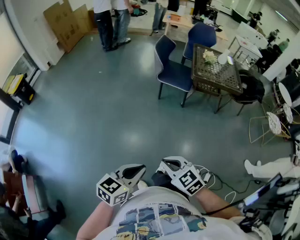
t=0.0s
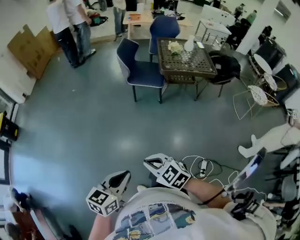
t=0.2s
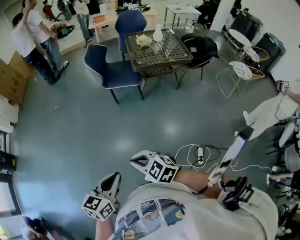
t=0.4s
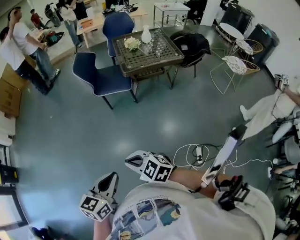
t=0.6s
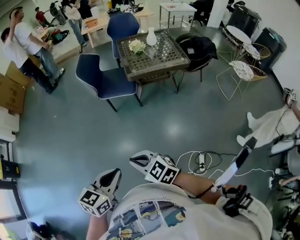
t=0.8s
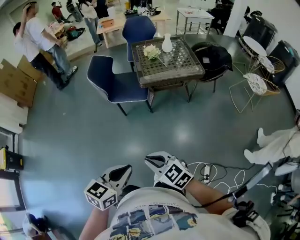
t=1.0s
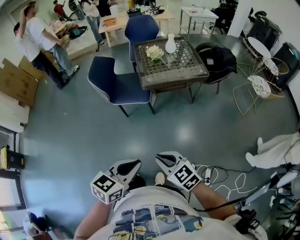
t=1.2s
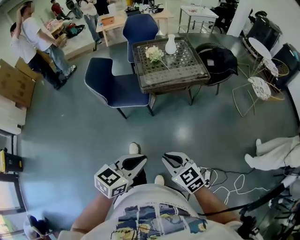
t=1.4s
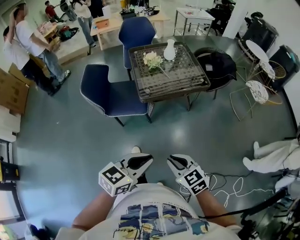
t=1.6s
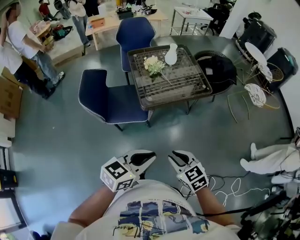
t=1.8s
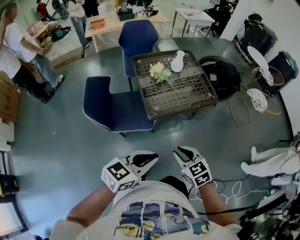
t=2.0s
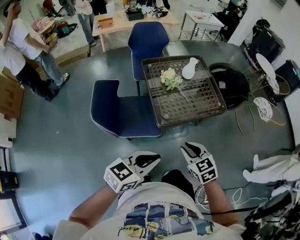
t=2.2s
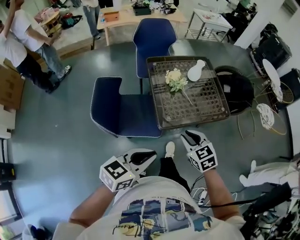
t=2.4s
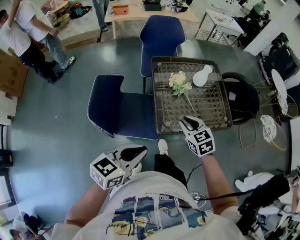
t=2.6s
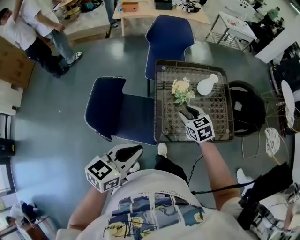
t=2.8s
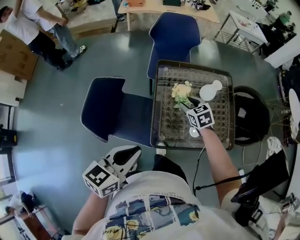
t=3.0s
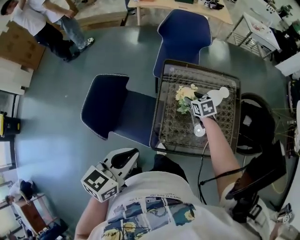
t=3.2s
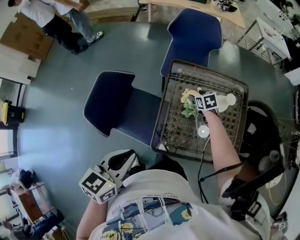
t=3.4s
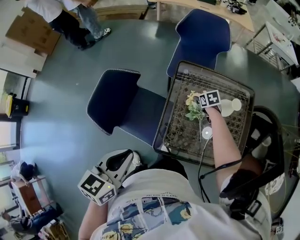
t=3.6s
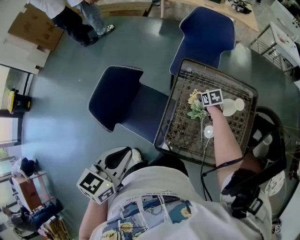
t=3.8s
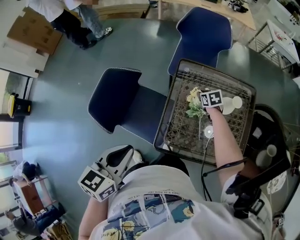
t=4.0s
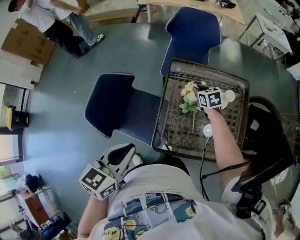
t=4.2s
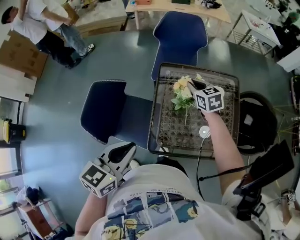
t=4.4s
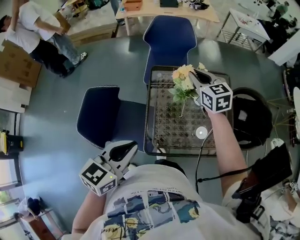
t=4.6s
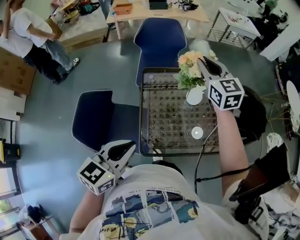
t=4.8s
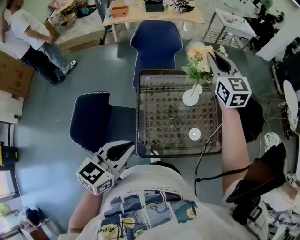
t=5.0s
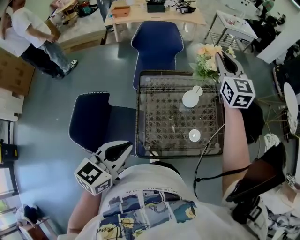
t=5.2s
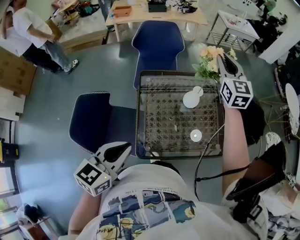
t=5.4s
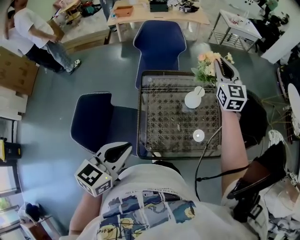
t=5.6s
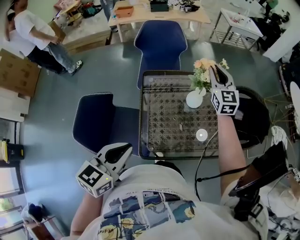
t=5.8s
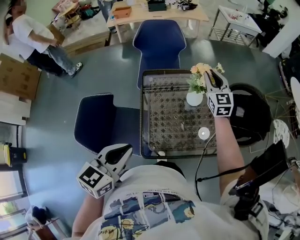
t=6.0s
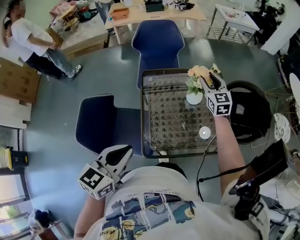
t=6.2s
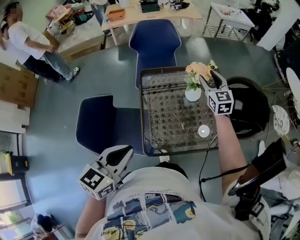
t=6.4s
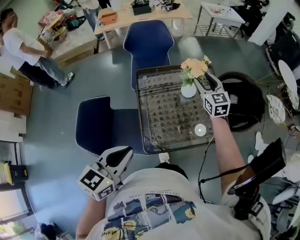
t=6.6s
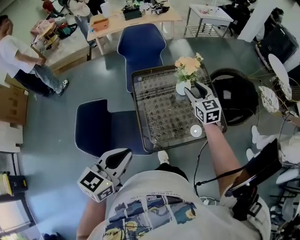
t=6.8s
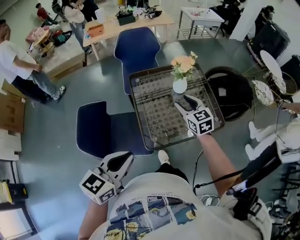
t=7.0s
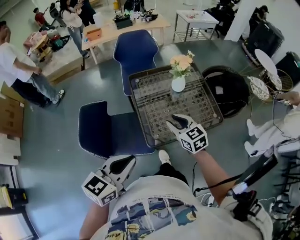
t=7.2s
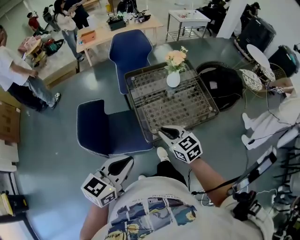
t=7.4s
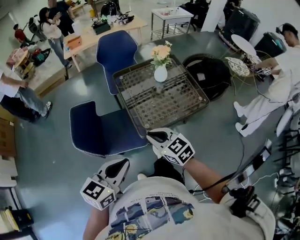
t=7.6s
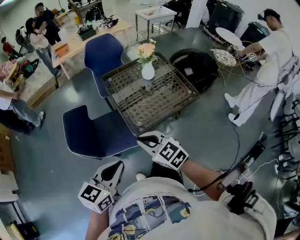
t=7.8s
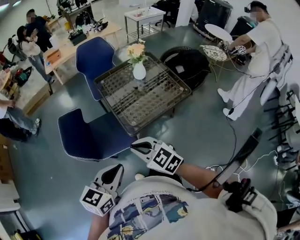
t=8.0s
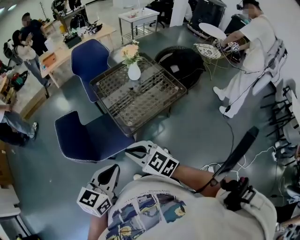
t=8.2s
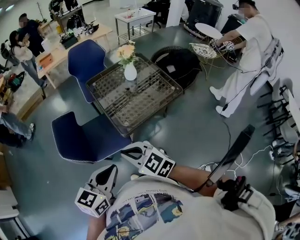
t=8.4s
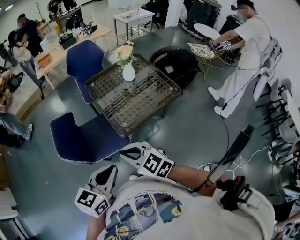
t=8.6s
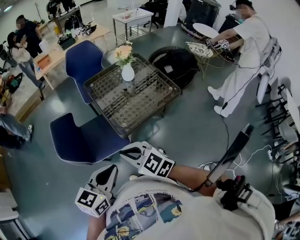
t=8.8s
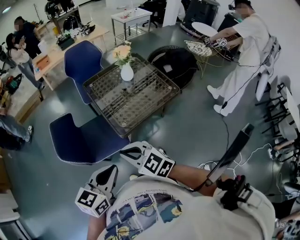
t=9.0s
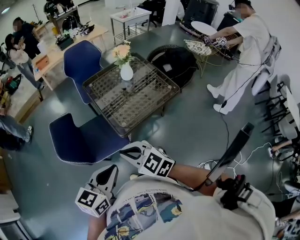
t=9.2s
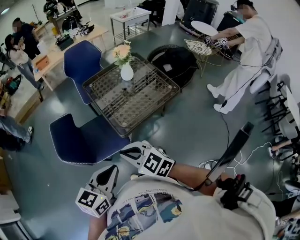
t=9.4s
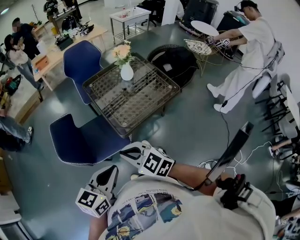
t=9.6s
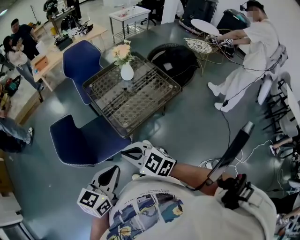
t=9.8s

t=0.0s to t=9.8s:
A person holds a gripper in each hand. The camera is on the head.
t=0.0s to t=1.4s: Both grippers move forward and to the right, approximately 40 cm. The right gripper changes its angle by approximately 20 degrees; the left gripper changes its angle by some 20 degrees.
t=1.4s to t=2.8s: Both grippers are carried forward, approximately 60 cm. The right gripper opens its fingers.
t=2.8s to t=4.2s: The right gripper shifts by some 25 cm, and opens and closes again, while the left gripper ends up roughly 10 cm from where it was, and changes its angle by approximately 20 degrees.
t=4.2s to t=5.6s: The left gripper moves about 10 cm, while the right gripper shifts approximately 30 cm upward, and points its fingers some 40 degrees further upward.
t=5.6s to t=7.0s: The left gripper moves backward, approximately 15 cm. Meanwhile the right gripper goes about 30 cm backward and downward, turns by roughly 20 degrees, and opens its fingers.
t=7.0s to t=8.4s: The left gripper shifts approximately 20 cm backward. The right gripper goes approximately 40 cm backward and to the left, and closes up.
t=8.4s to t=9.8s: The grippers stay close to where they were, moving slightly.

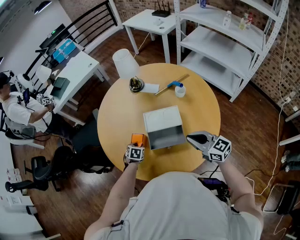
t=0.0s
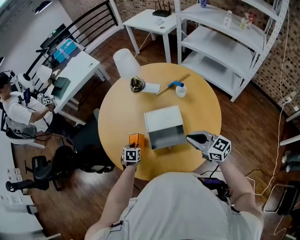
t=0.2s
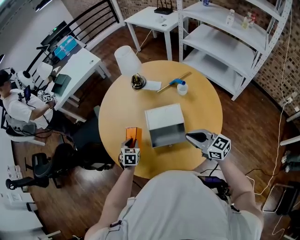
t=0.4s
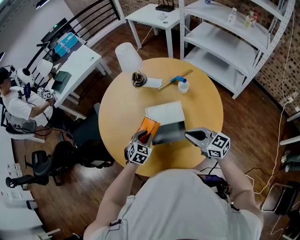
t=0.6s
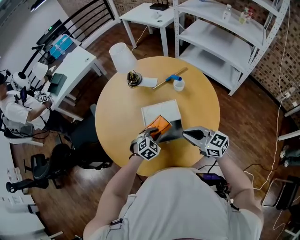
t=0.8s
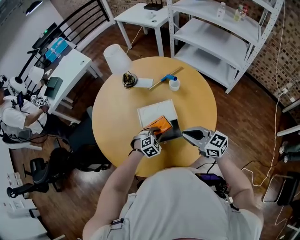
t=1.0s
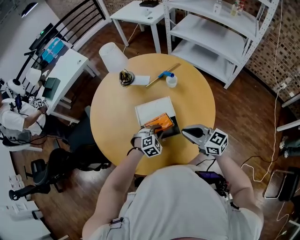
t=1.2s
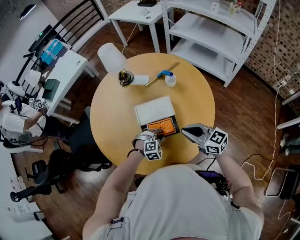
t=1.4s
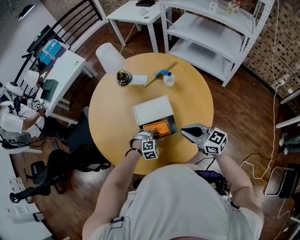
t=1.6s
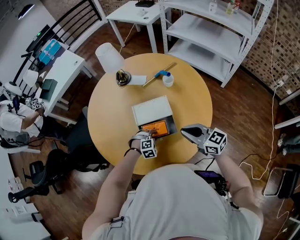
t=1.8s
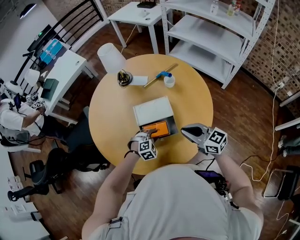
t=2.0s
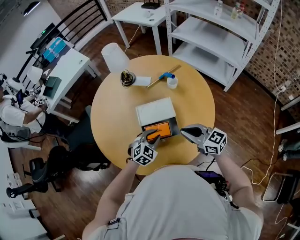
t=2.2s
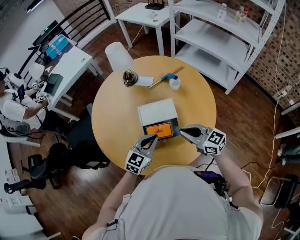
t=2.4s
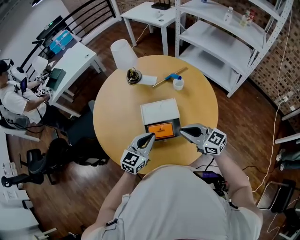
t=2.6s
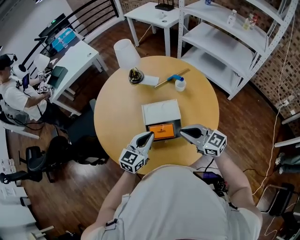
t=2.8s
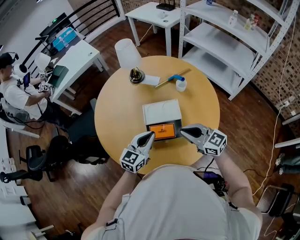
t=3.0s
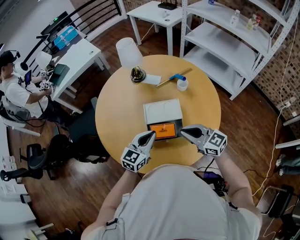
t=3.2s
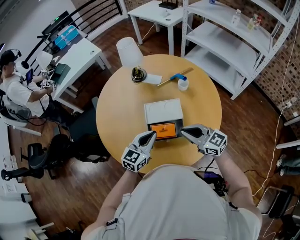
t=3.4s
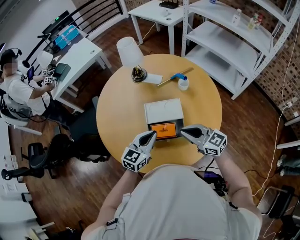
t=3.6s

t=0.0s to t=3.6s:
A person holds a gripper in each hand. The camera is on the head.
t=0.0s to t=1.8s: The left gripper shifts roughly 15 cm to the right, and twists roughly 70 degrees clockwise, seen from behind.
t=1.8s to t=3.6s: The left gripper heads upward, covering about 25 cm, points its fingers roughly 50 degrees further upward, and closes. The right gripper ends up about 5 cm from where it was.

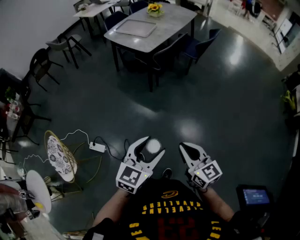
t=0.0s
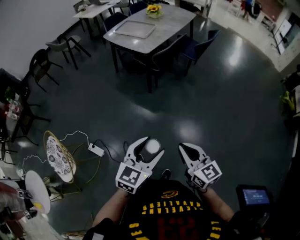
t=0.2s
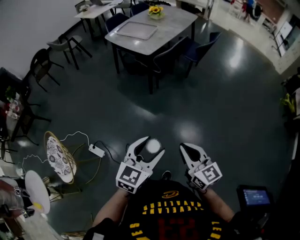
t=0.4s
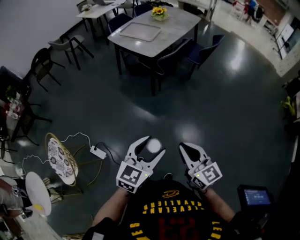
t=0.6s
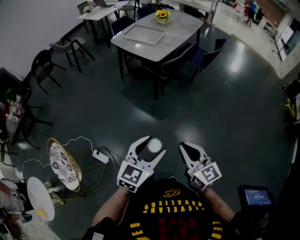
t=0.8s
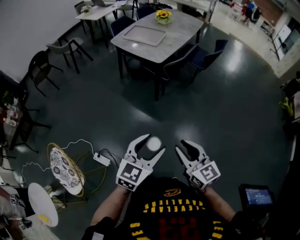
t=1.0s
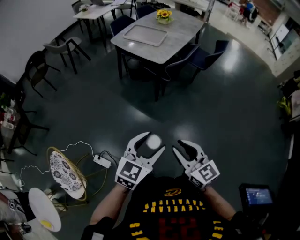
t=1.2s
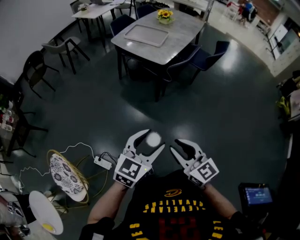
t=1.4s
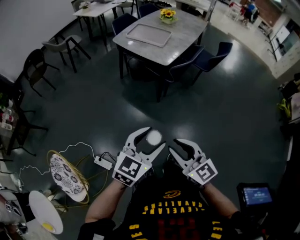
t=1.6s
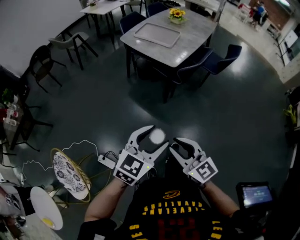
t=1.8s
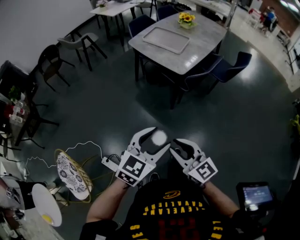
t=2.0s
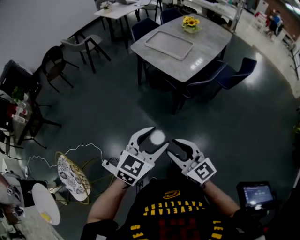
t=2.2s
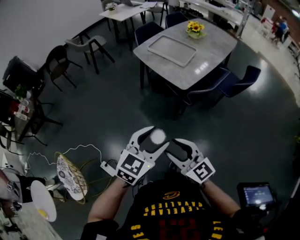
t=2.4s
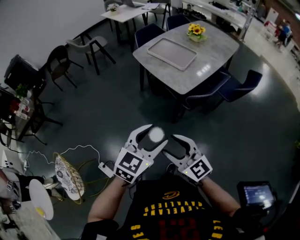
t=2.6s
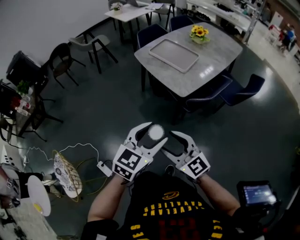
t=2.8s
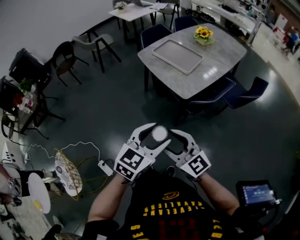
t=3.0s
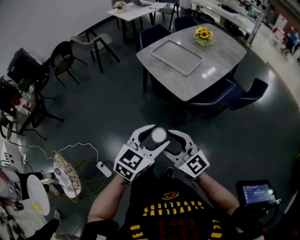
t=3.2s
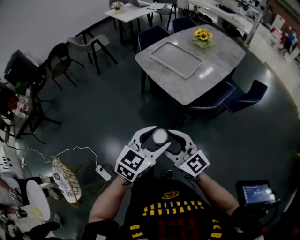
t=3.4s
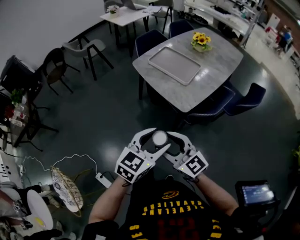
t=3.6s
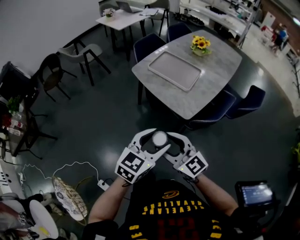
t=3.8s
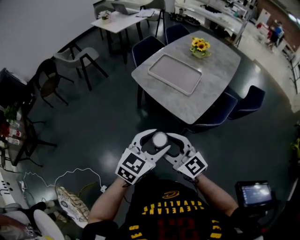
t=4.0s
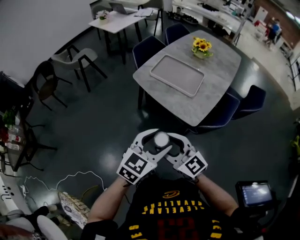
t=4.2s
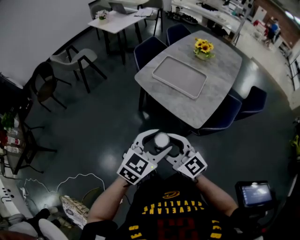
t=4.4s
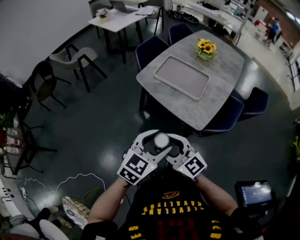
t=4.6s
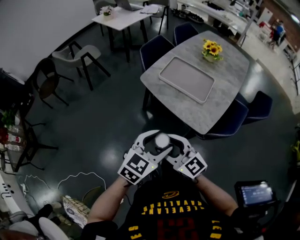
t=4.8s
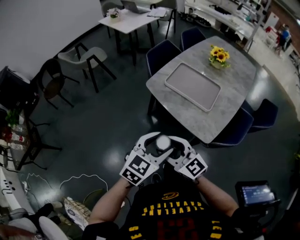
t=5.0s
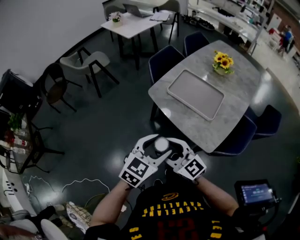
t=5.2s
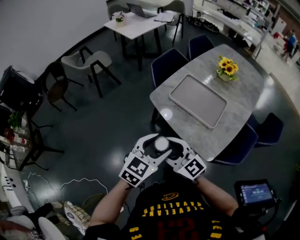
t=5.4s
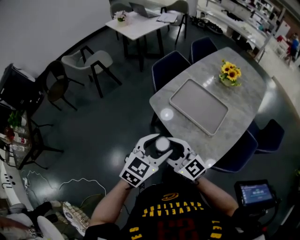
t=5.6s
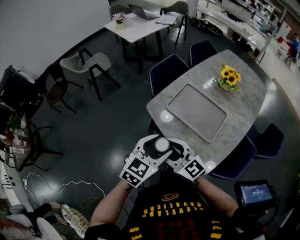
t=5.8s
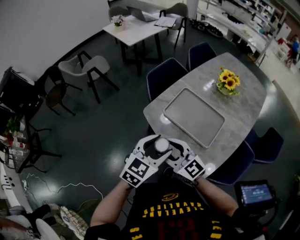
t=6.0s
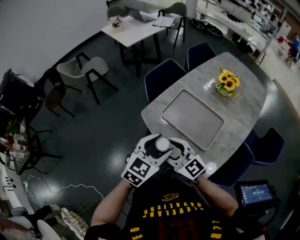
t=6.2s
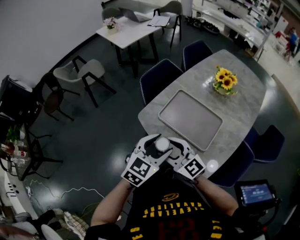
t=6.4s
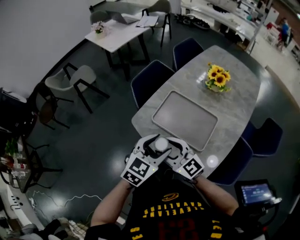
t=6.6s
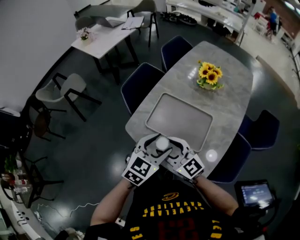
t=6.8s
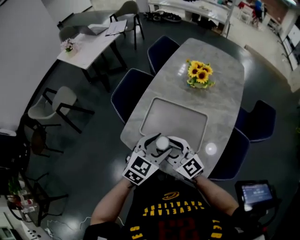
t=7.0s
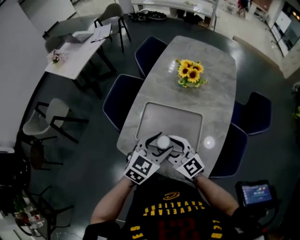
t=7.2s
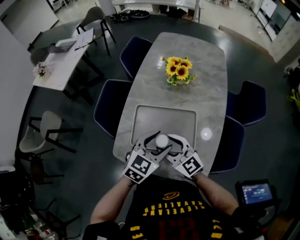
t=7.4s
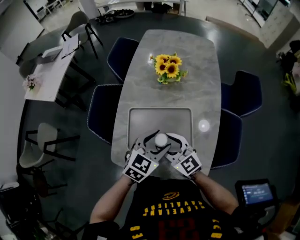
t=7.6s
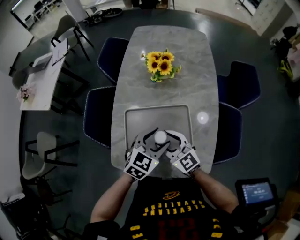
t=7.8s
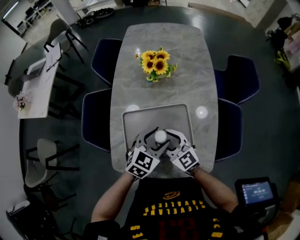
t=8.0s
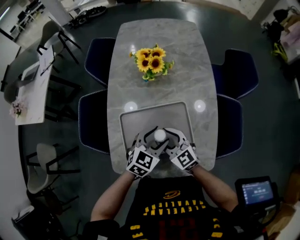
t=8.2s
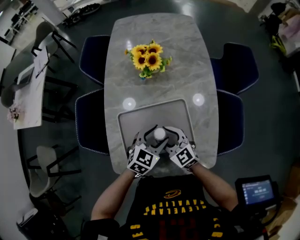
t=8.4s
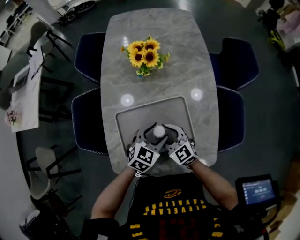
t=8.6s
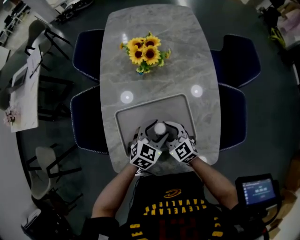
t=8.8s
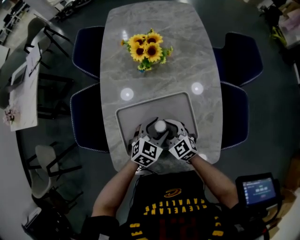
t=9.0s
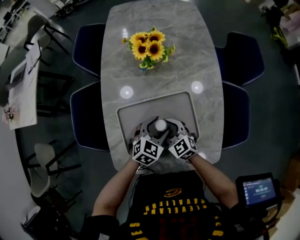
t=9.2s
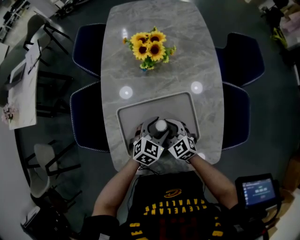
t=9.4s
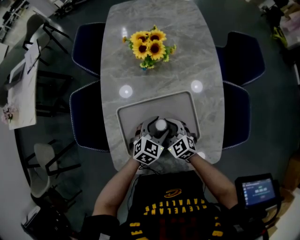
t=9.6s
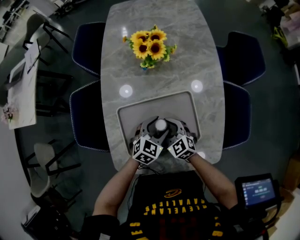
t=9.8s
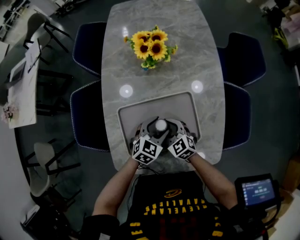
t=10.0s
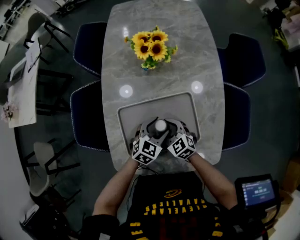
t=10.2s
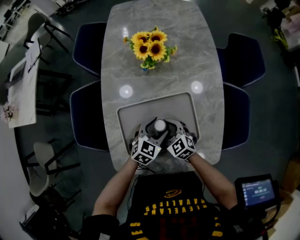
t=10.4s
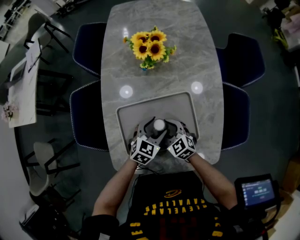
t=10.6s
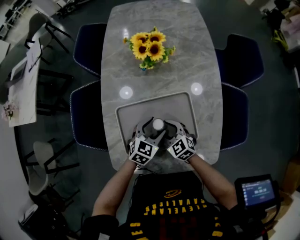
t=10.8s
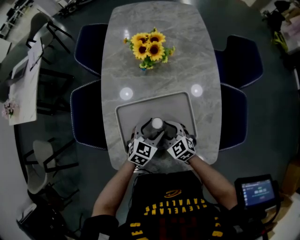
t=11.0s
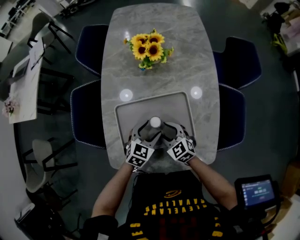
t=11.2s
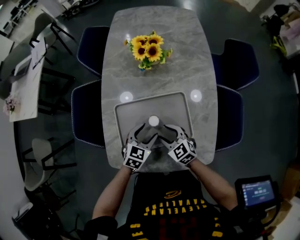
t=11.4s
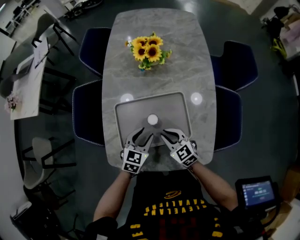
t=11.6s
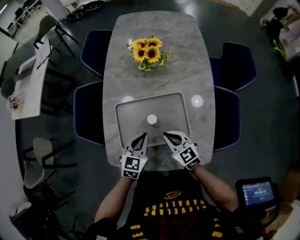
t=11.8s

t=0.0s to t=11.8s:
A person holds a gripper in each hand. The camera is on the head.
t=0.0s to t=1.4s: The two grippers go some 25 cm to the left and forward. The right gripper opens its fingers.
t=1.4s to t=3.0s: Both grippers move forward, approximately 25 cm. The right gripper swivels some 30 degrees, and opens.
t=3.0s to t=4.4s: The two grippers go some 25 cm forward and to the left.
t=4.4s to t=6.0s: Both grippers move forward, approximately 25 cm.
t=6.0s to t=7.4s: The left gripper ends up approximately 20 cm from where it was, and changes its angle by about 30 degrees; the right gripper shifts by approximately 25 cm, and rotates approximately 40 degrees.
t=7.4s to t=8.8s: Both grippers move downward and forward, roughly 15 cm. The right gripper changes its angle by some 30 degrees; the left gripper changes its angle by some 20 degrees.
t=8.8s to t=10.4s: The right gripper moves roughly 5 cm.
t=10.4s to t=11.8s: The right gripper is displaced upward and backward by about 10 cm, and closes its fingers. The left gripper heads upward, to the left and backward, covering some 10 cm, swivels approximately 20 degrees, and closes.
